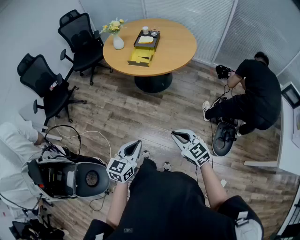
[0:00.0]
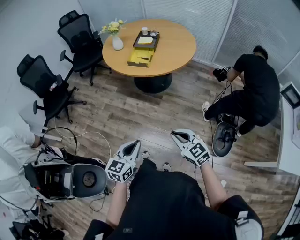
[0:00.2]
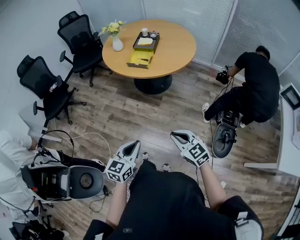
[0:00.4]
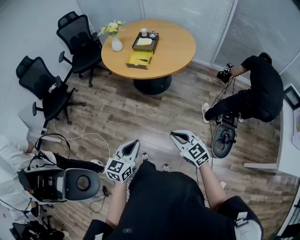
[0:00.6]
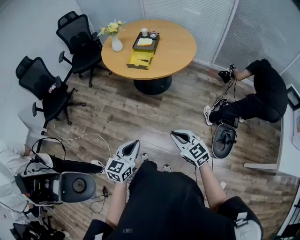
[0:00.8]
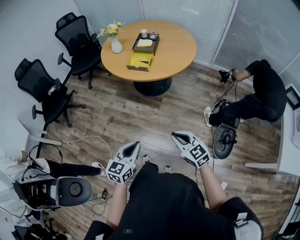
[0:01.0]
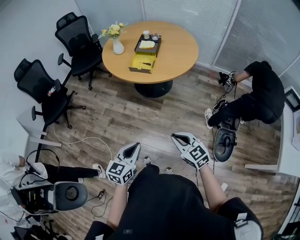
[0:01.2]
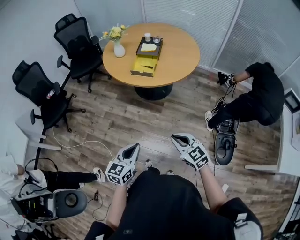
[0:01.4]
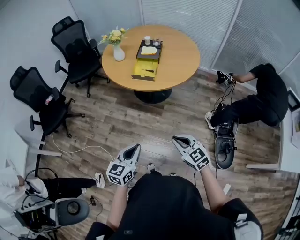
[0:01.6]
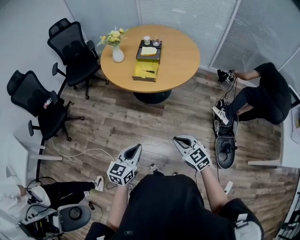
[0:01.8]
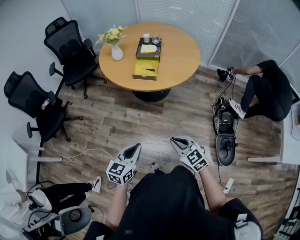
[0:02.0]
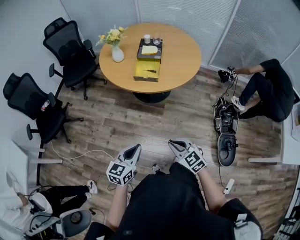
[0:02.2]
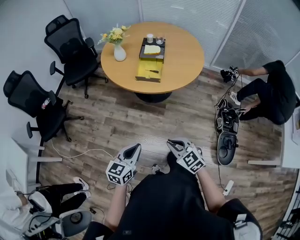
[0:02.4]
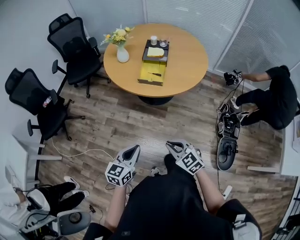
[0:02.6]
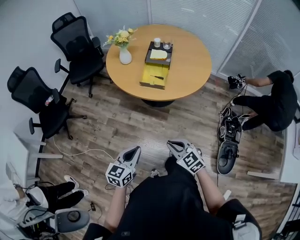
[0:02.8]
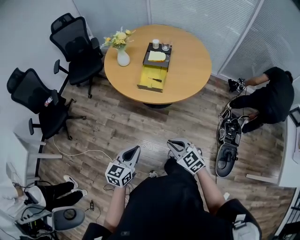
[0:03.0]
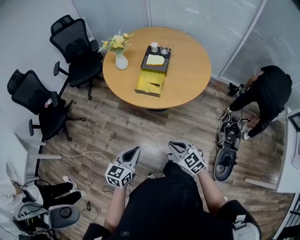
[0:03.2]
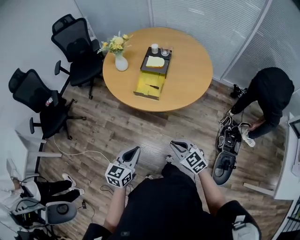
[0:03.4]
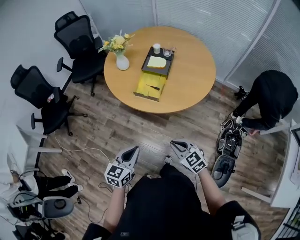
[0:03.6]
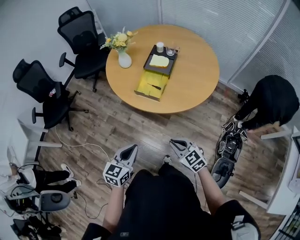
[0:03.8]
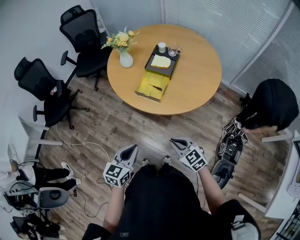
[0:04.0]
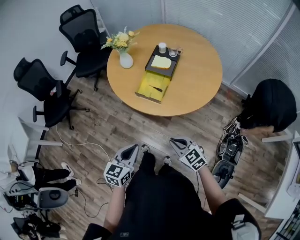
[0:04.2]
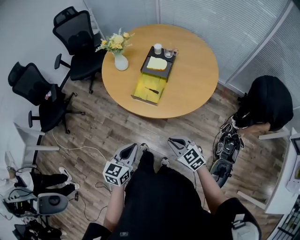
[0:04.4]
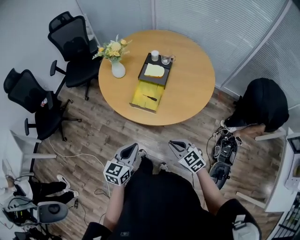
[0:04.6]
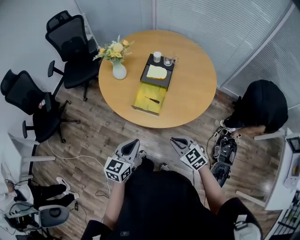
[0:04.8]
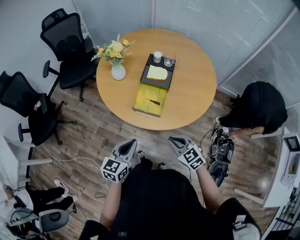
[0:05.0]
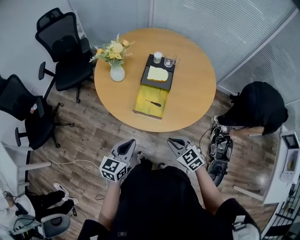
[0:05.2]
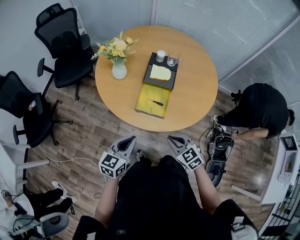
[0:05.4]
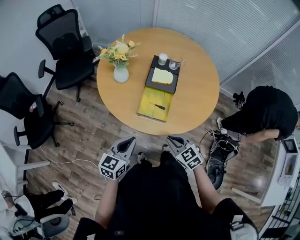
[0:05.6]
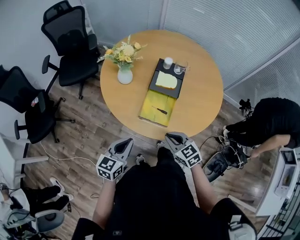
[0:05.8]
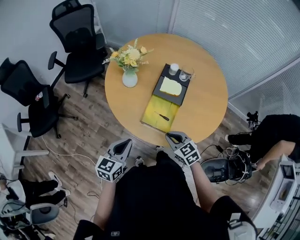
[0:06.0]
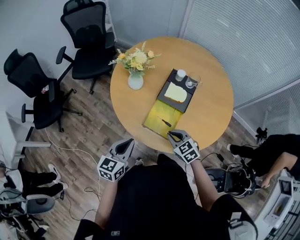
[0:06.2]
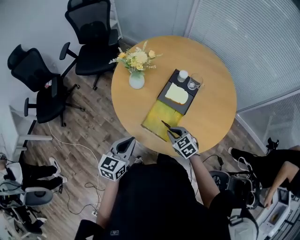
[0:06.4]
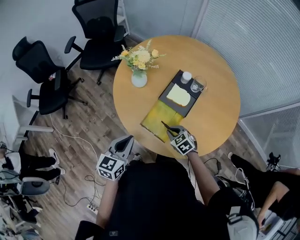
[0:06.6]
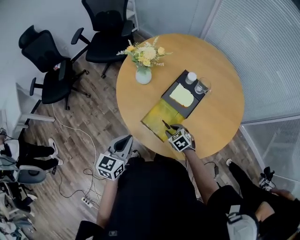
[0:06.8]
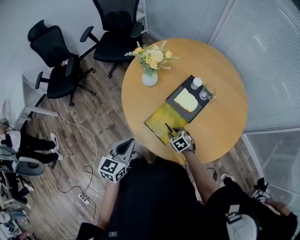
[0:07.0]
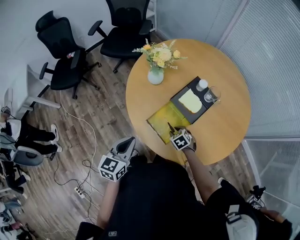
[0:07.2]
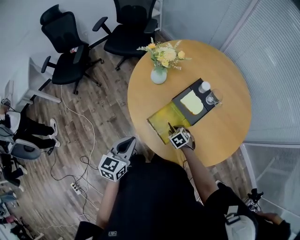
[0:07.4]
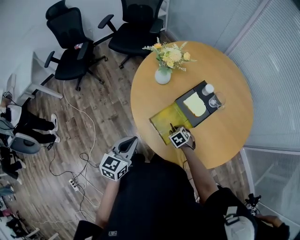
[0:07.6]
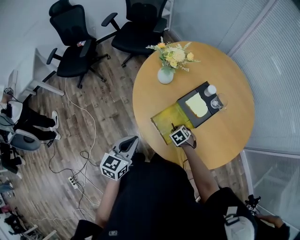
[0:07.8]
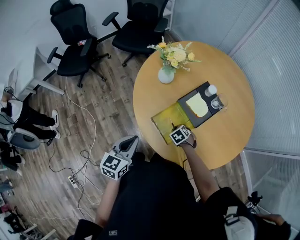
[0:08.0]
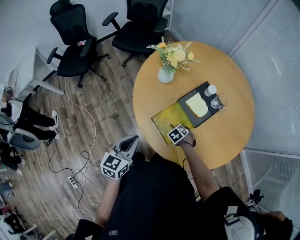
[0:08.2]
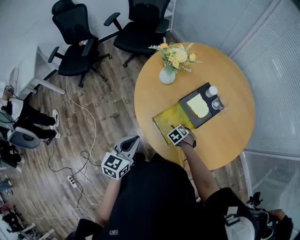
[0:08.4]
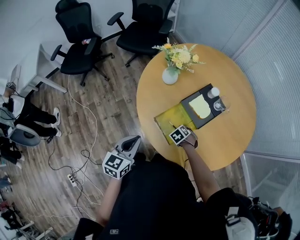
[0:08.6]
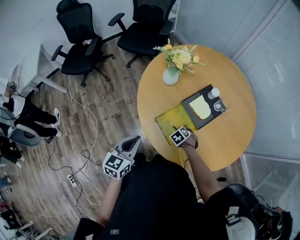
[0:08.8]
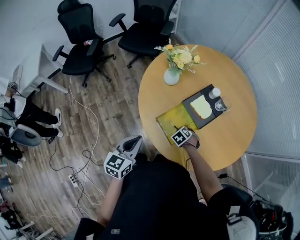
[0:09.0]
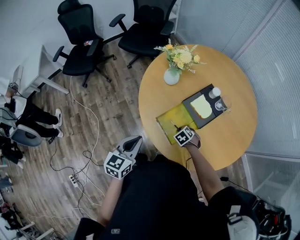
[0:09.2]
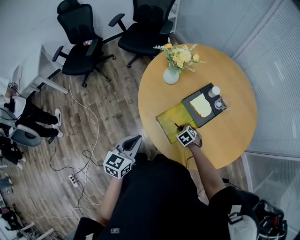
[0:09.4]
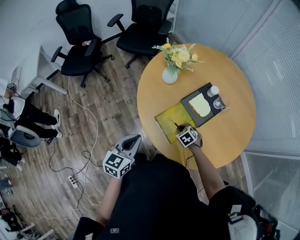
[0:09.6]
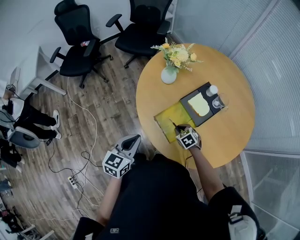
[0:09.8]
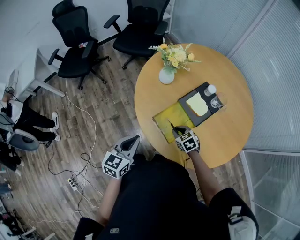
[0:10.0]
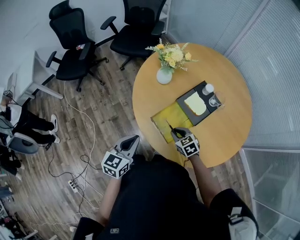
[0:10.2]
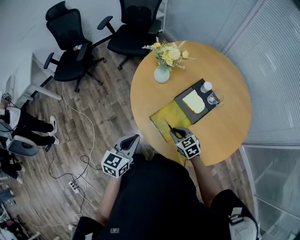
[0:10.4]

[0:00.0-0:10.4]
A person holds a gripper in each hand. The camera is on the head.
0:00.0 to 0:01.4: The left gripper is displaced forward and to the left by roughly 10 cm; the right gripper travels forward by about 10 cm.
0:01.4 to 0:03.0: The right gripper travels forward and to the left by some 15 cm. Meanwhile the left gripper shifts roughly 15 cm forward.
0:03.0 to 0:04.4: The two grippers go about 15 cm forward and to the right.
0:04.4 to 0:06.0: The left gripper is displaced forward and to the left by about 25 cm; the right gripper shifts approximately 25 cm forward.
0:06.0 to 0:07.4: The left gripper swivels some 30 degrees. Meanwhile the right gripper travels downward by about 15 cm, changes its angle by approximately 40 degrees, and opens up.
0:07.4 to 0:09.0: The grippers stay close to where they were, moving slightly.
0:09.0 to 0:10.4: The right gripper moves upward, approximately 15 cm, and tips its fingers upward by some 30 degrees.

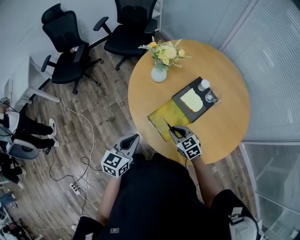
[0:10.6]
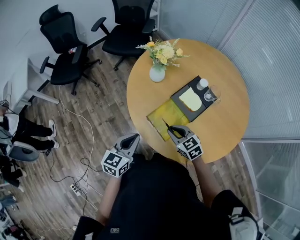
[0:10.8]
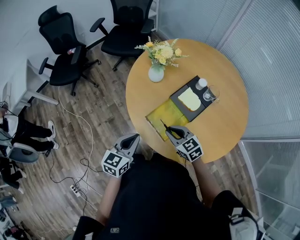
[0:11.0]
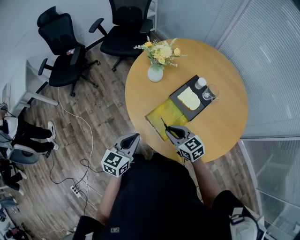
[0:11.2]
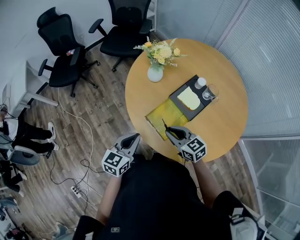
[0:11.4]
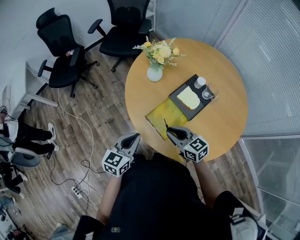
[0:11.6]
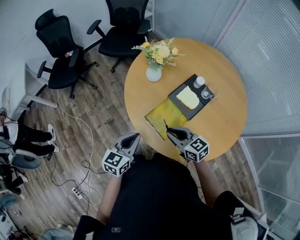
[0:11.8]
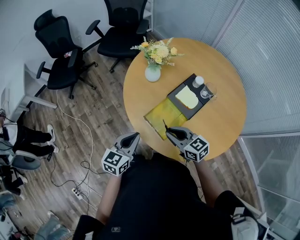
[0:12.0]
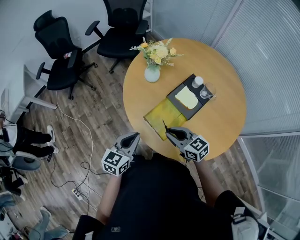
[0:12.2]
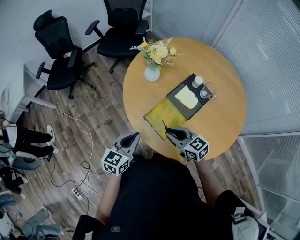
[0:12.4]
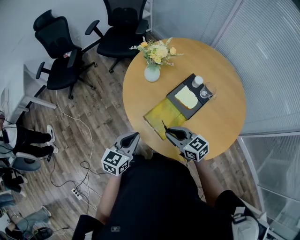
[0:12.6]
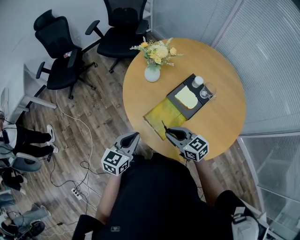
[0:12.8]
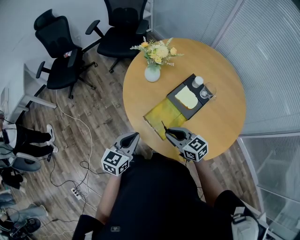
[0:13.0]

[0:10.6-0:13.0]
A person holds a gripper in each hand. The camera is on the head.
0:10.6 to 0:11.8: The right gripper moves upward, some 10 cm, and changes its angle by some 20 degrees.
0:11.8 to 0:13.0: Both grippers stay put.

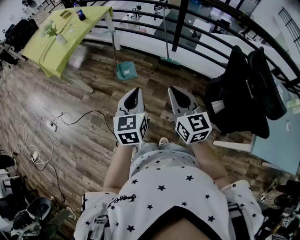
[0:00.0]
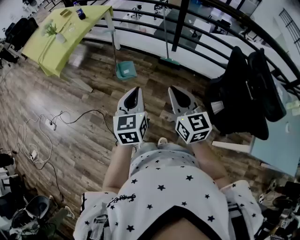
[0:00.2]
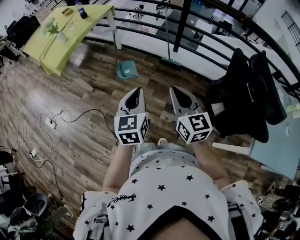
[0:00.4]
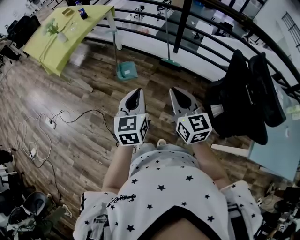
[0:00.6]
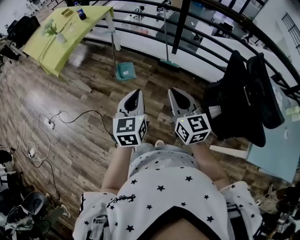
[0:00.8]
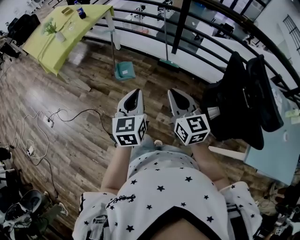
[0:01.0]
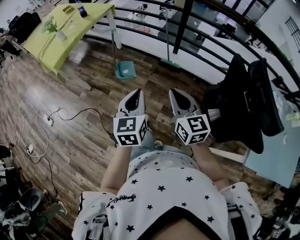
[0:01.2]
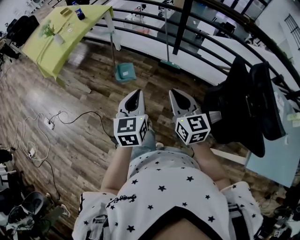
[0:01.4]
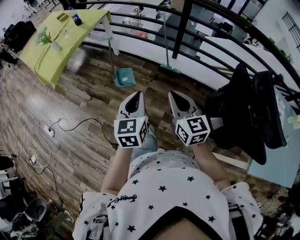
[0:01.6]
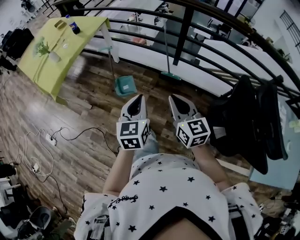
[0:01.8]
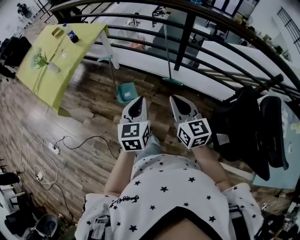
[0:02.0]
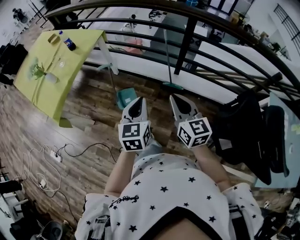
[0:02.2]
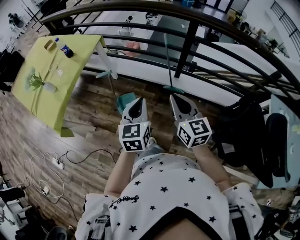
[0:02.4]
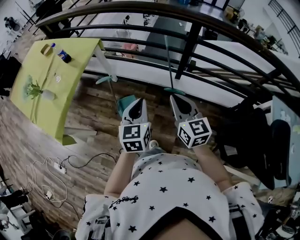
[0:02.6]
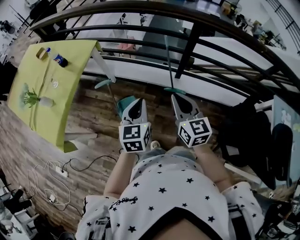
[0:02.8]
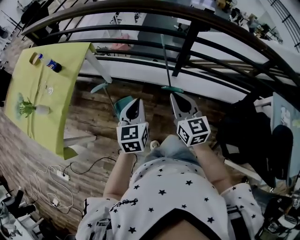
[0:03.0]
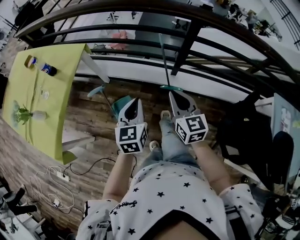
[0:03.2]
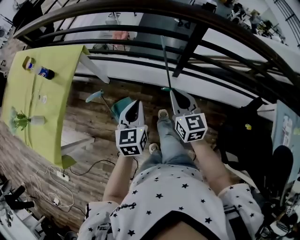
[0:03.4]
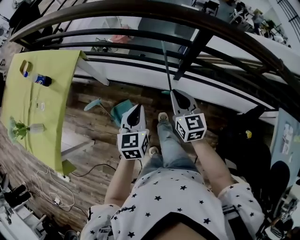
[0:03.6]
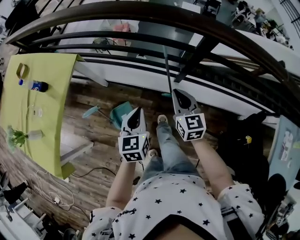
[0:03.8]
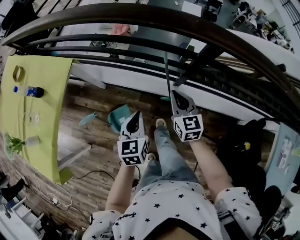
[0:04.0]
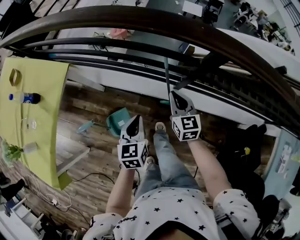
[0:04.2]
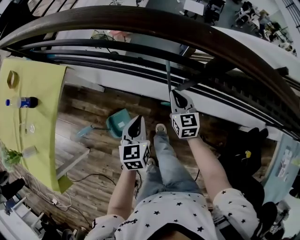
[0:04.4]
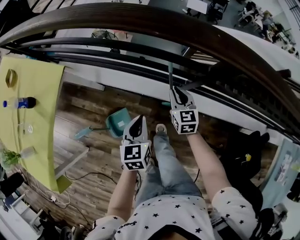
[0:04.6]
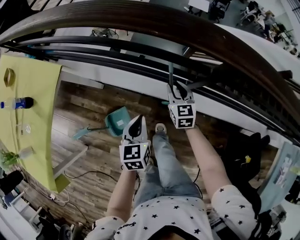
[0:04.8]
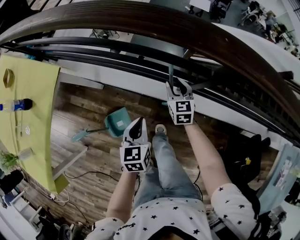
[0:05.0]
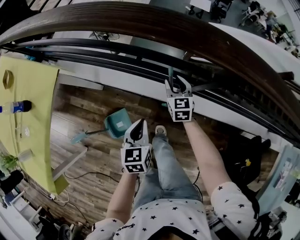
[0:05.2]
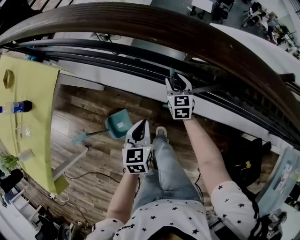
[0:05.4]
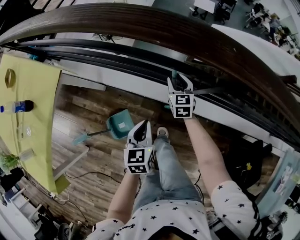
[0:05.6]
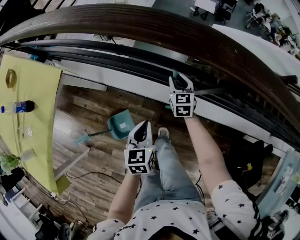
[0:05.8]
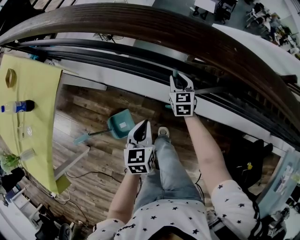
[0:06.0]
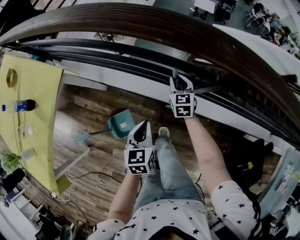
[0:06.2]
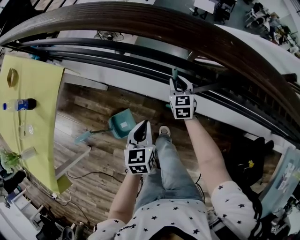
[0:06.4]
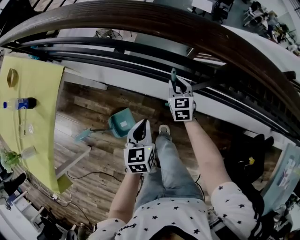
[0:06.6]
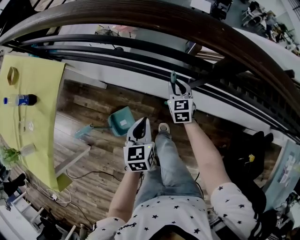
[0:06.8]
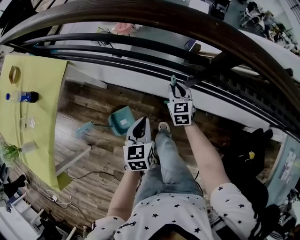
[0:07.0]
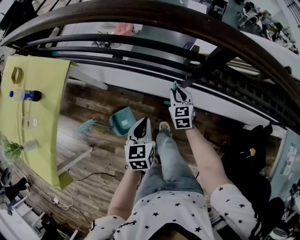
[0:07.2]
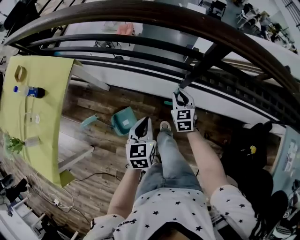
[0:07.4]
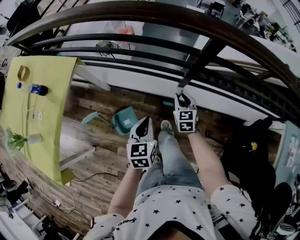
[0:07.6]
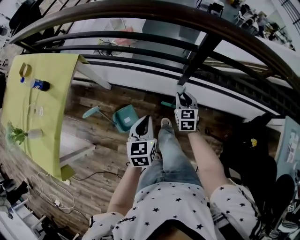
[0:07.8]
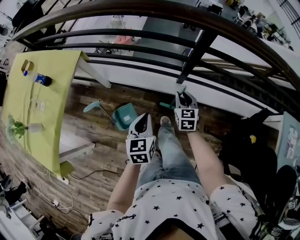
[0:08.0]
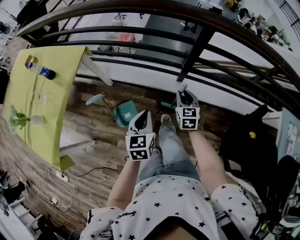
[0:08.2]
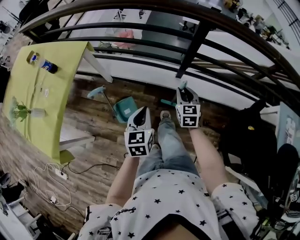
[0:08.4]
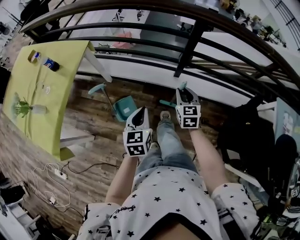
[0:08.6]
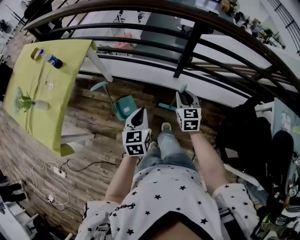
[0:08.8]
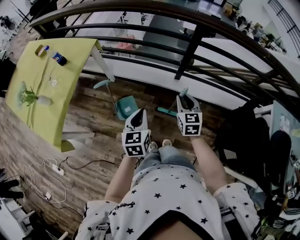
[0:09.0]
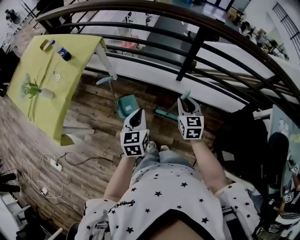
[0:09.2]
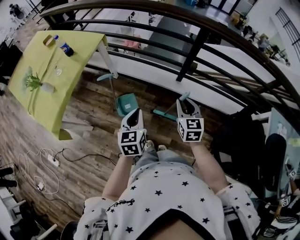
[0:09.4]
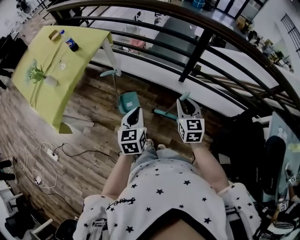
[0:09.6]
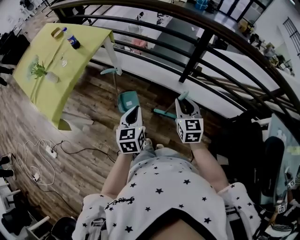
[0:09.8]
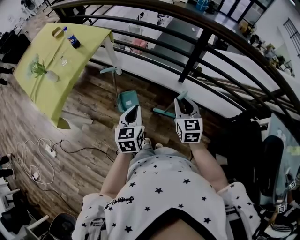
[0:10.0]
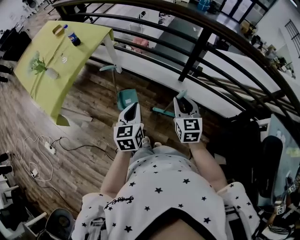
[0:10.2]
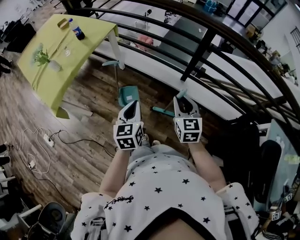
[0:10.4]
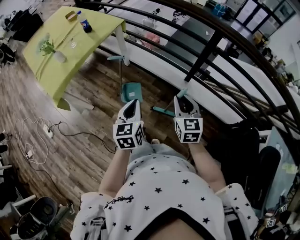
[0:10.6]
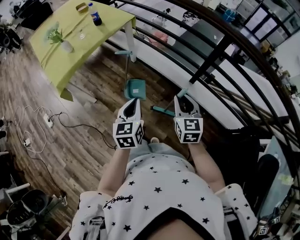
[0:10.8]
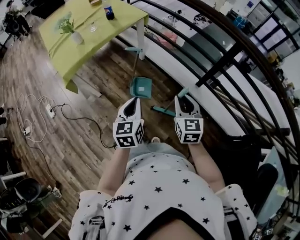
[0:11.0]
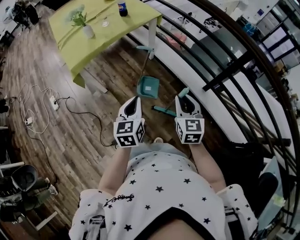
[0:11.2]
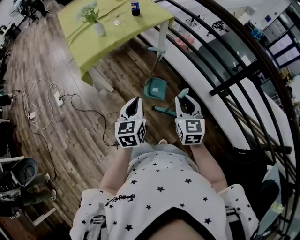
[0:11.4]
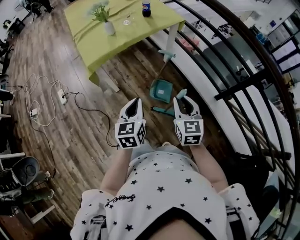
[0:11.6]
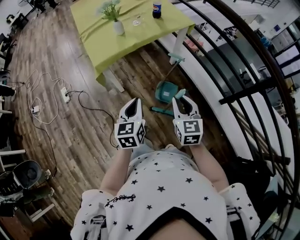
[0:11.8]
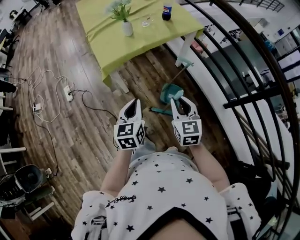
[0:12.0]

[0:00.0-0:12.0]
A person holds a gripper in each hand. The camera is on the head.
0:00.0 to 0:01.6: Both grippers move forward, approximately 10 cm.
0:01.6 to 0:03.0: The two grippers go roughly 40 cm forward.
0:03.0 to 0:04.4: The grippers both shift forward and downward by roughly 35 cm.
0:04.4 to 0:06.0: The left gripper goes approximately 5 cm downward, while the right gripper is displaced forward and downward by roughly 15 cm.
0:06.0 to 0:07.6: The right gripper goes roughly 25 cm backward; the left gripper moves backward and upward, approximately 15 cm.
0:07.6 to 0:09.0: Both grippers travel together backward and upward, roughly 25 cm.
0:09.0 to 0:10.4: The right gripper heads backward and upward, covering roughly 10 cm; the left gripper travels backward by approximately 10 cm.
0:10.4 to 0:12.0: The left gripper ends up some 35 cm from where it was, and turns by some 30 degrees; the right gripper ends up approximately 40 cm from where it was, and turns by roughly 30 degrees.
